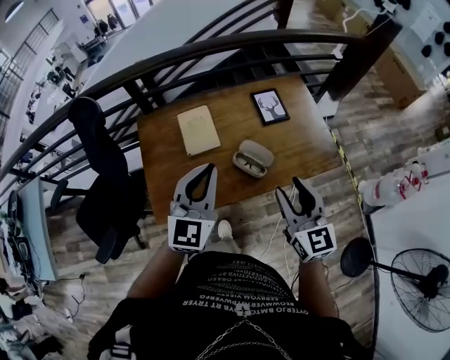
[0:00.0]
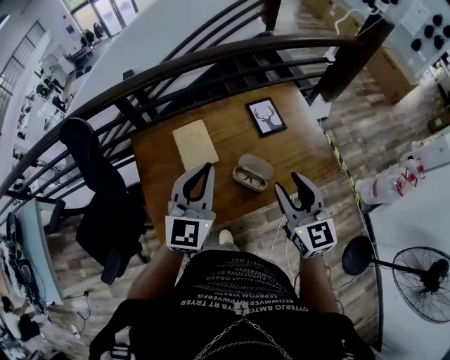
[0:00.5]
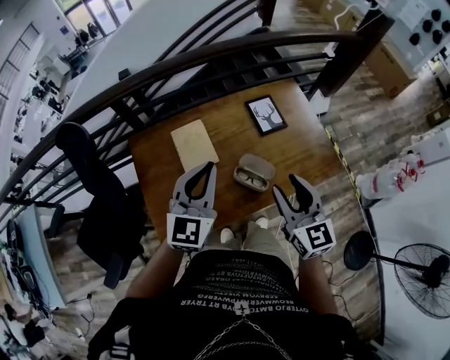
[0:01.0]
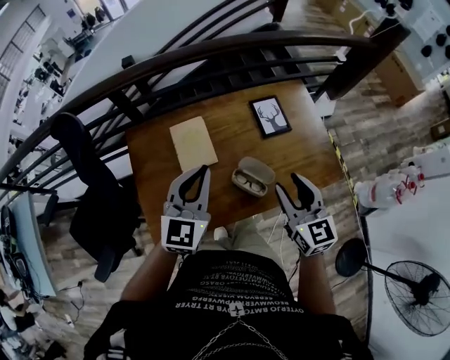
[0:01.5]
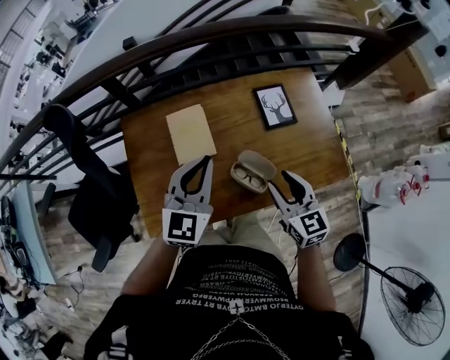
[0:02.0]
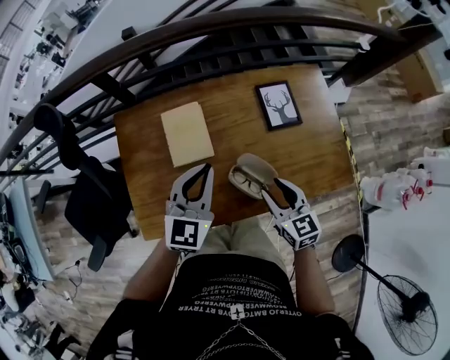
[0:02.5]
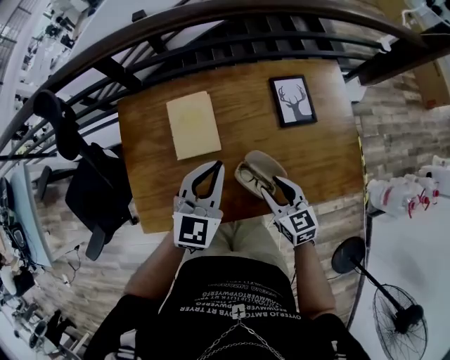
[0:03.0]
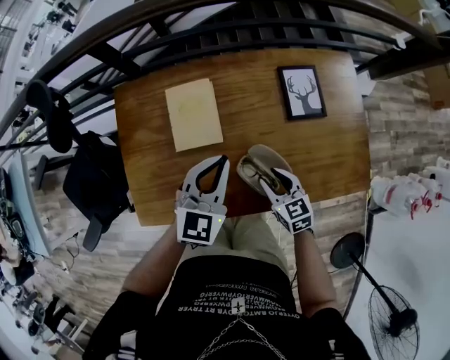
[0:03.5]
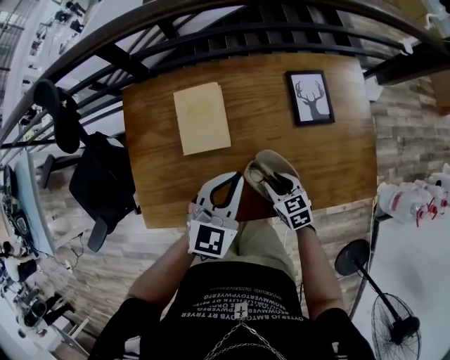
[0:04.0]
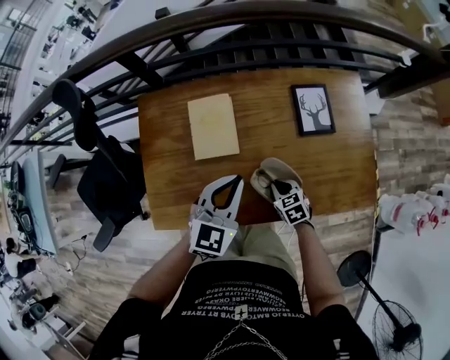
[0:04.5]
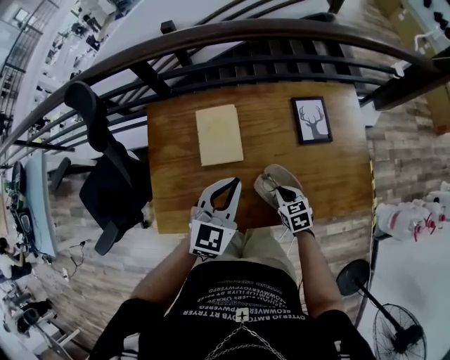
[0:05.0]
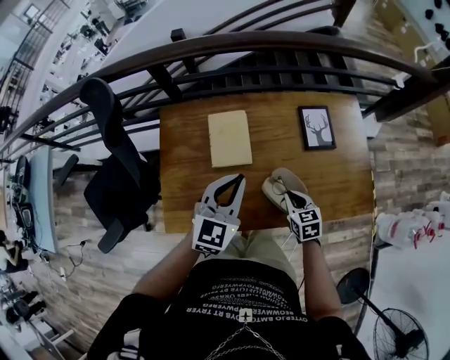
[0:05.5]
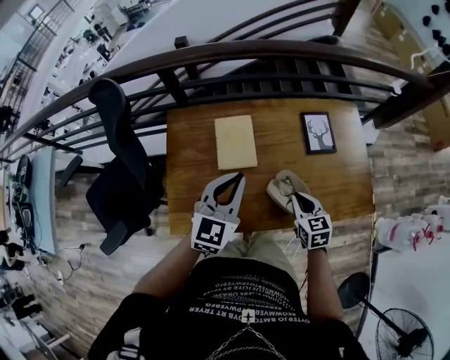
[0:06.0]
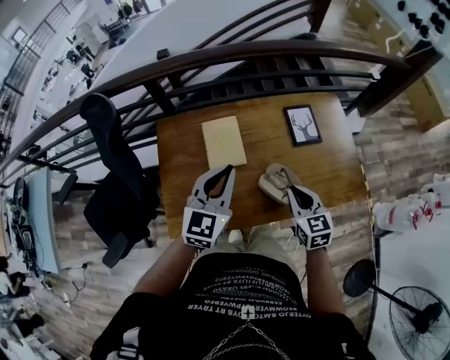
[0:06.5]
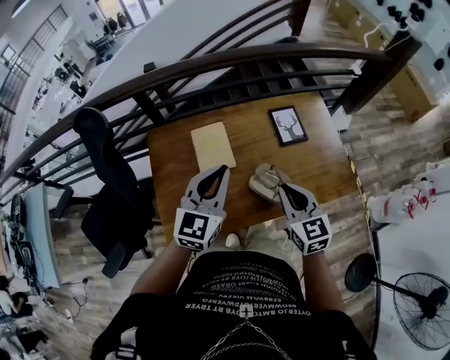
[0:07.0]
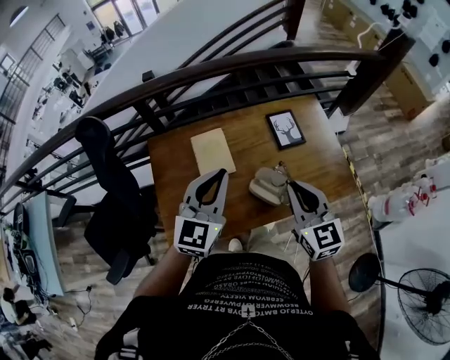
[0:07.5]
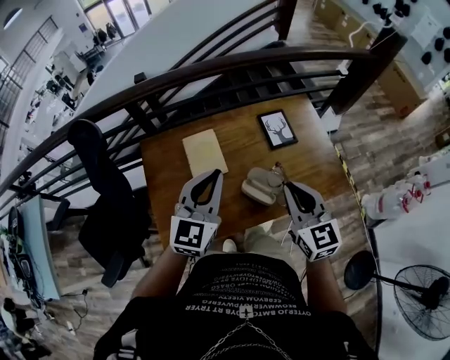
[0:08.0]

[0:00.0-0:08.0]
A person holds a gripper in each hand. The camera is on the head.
0:00.0 to 0:02.0: Both grippers move forward and downward, some 20 cm.
0:02.0 to 0:04.0: The left gripper is displaced downward by about 15 cm; the right gripper heads downward, covering approximately 25 cm, and changes its angle by approximately 30 degrees.
0:04.0 to 0:06.0: The right gripper travels upward by roughly 15 cm, and closes its fingers. Meanwhile the left gripper goes some 15 cm upward and to the left.
0:06.0 to 0:08.0: The right gripper is displaced upward by some 20 cm, and changes its angle by roughly 30 degrees. Meanwhile the left gripper is displaced upward by some 10 cm.

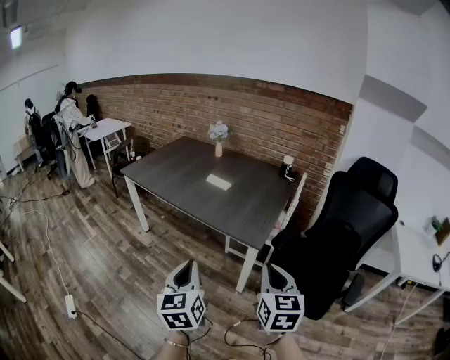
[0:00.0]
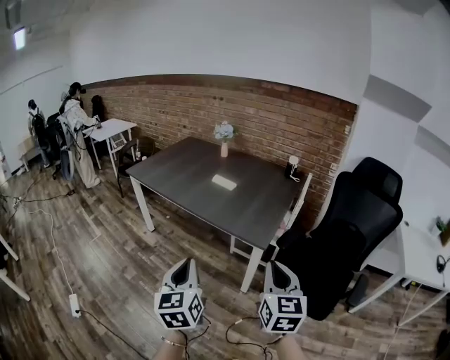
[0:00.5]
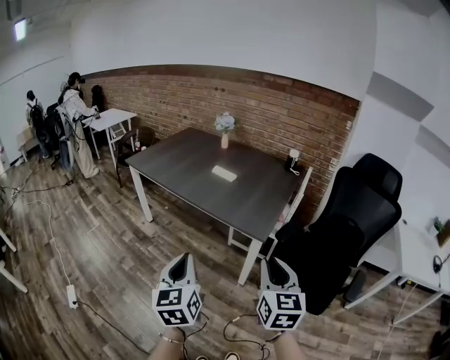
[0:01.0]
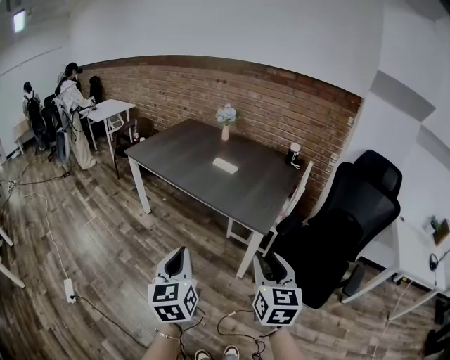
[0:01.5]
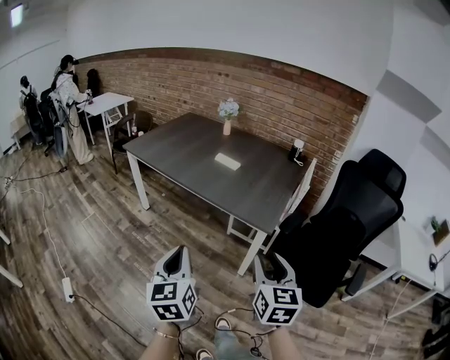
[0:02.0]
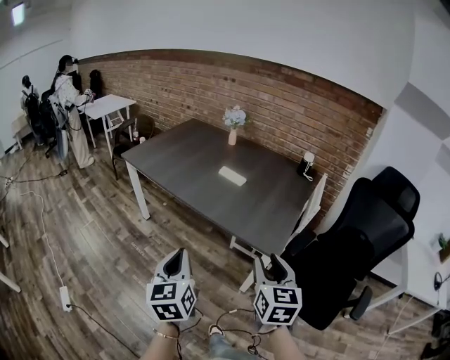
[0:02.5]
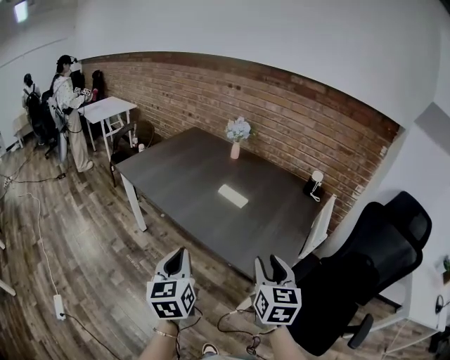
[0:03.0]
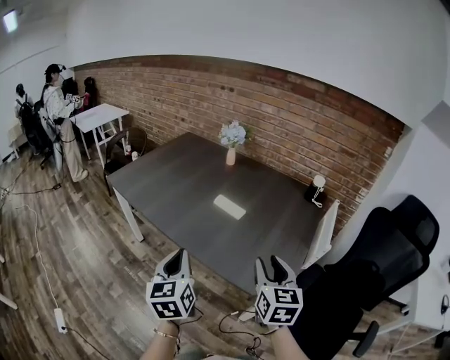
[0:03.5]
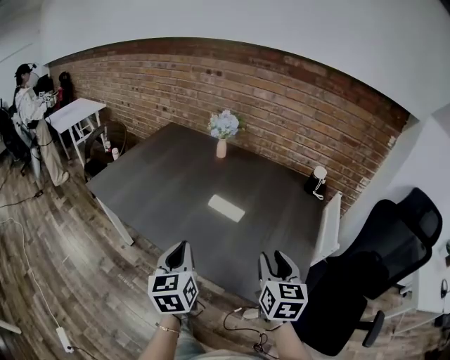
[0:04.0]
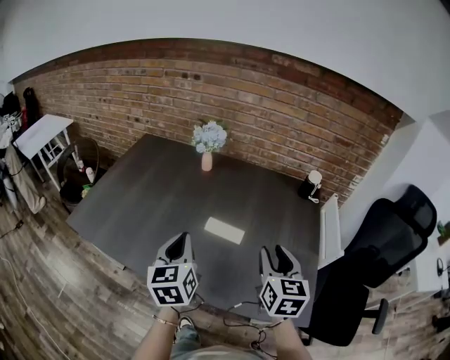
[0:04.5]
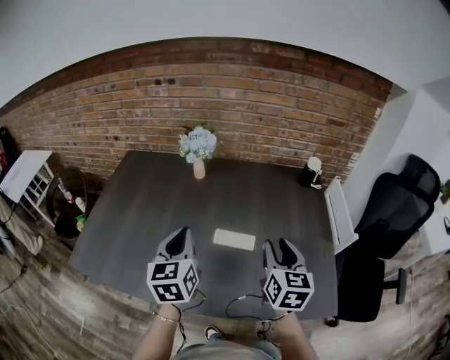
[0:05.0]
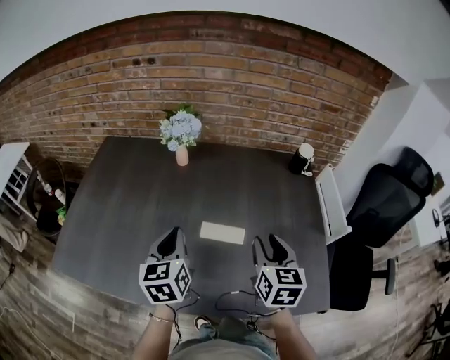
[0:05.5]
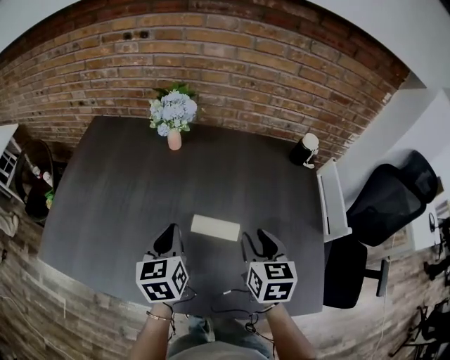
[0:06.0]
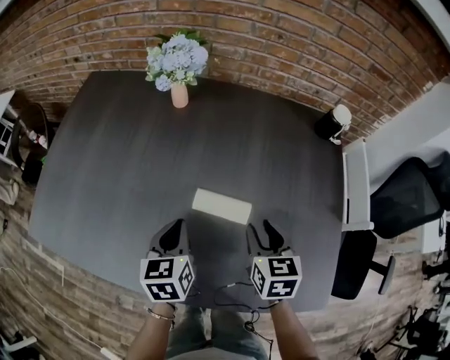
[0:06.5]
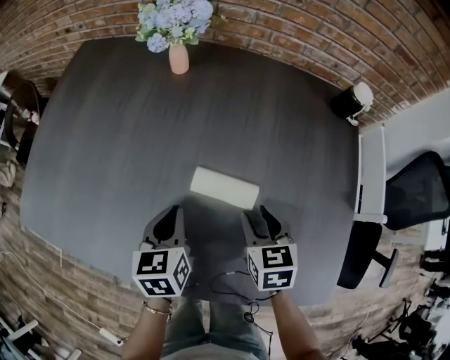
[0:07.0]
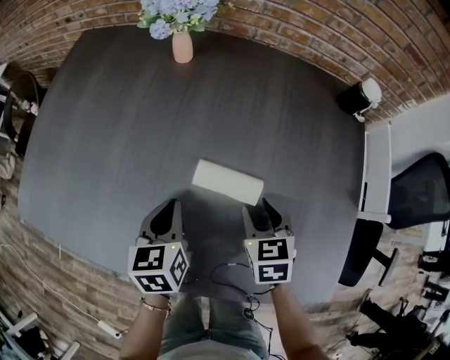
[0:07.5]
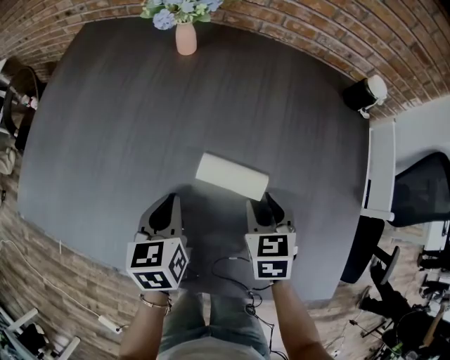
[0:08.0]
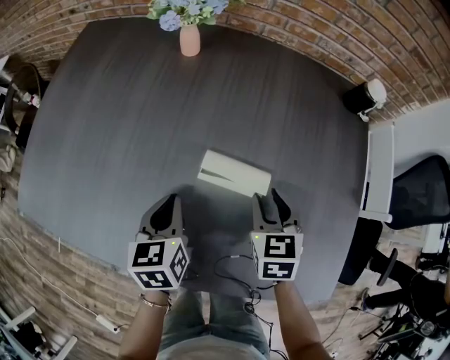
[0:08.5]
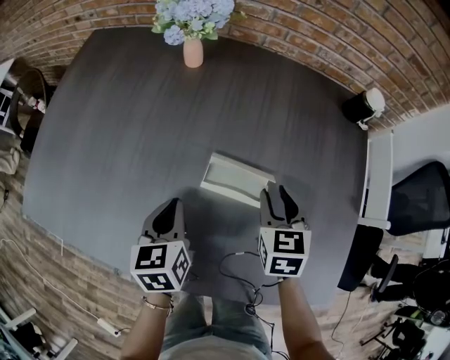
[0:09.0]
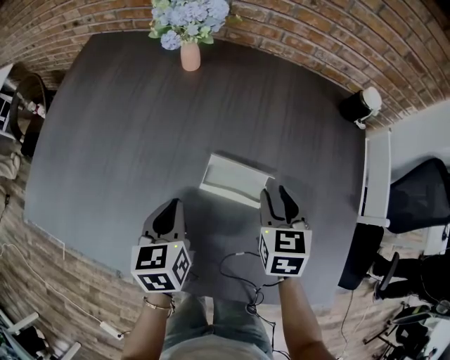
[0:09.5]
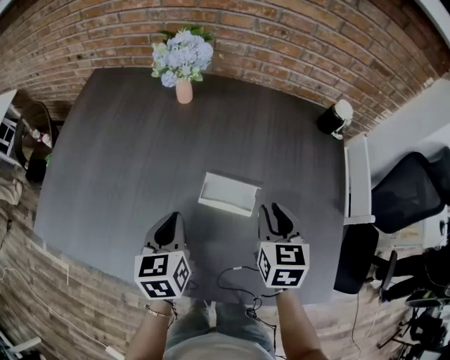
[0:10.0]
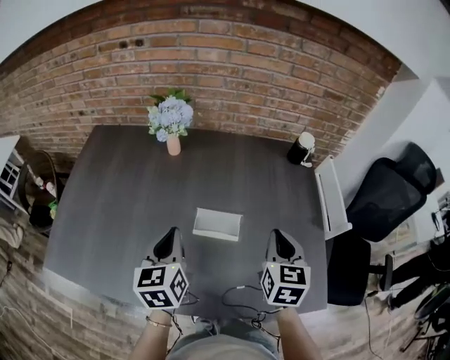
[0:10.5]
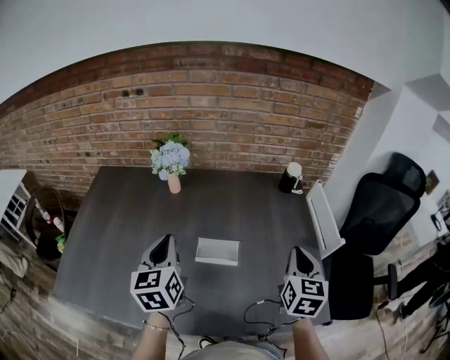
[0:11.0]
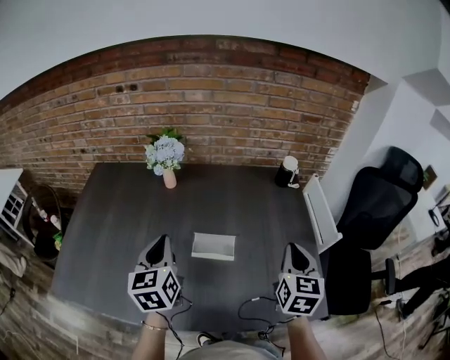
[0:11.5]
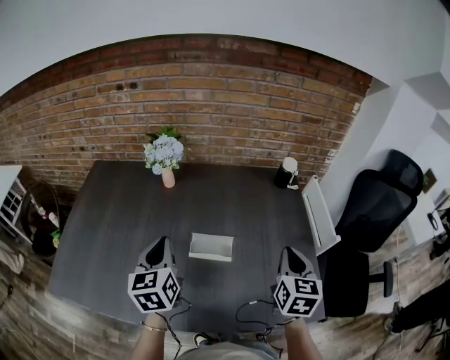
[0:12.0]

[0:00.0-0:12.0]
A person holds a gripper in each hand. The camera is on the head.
0:00.0 to 0:02.0: Both grippers move to the left, approximately 5 cm. The right gripper opens its fingers.
0:02.0 to 0:04.0: The two grippers travel together, forward, roughly 50 cm.
0:04.0 to 0:06.0: The left gripper travels forward by some 30 cm, and swivels approximately 20 degrees, while the right gripper heads forward and to the left, covering approximately 25 cm, and swivels some 20 degrees.
0:06.0 to 0:08.0: Both grippers move downward, some 15 cm. The right gripper swivels some 20 degrees.
0:08.0 to 0:10.0: The right gripper moves upward, some 10 cm. The left gripper shifts approximately 10 cm upward.
0:10.0 to 0:12.0: The right gripper goes approximately 20 cm upward, to the right and backward, changes its angle by about 20 degrees, and closes its fingers. Meanwhile the left gripper heads upward, covering roughly 15 cm.

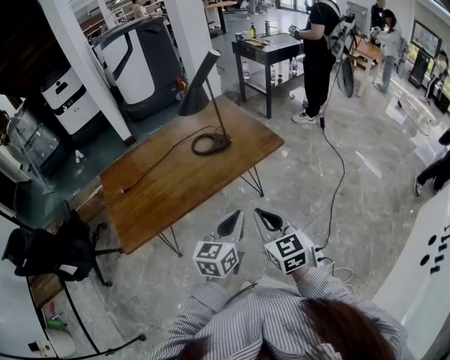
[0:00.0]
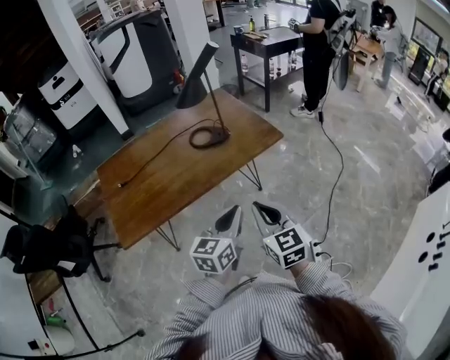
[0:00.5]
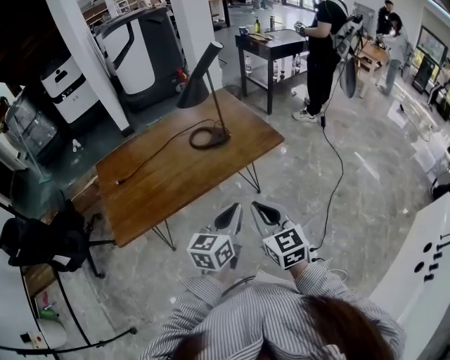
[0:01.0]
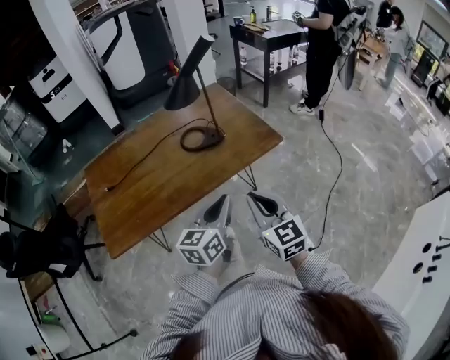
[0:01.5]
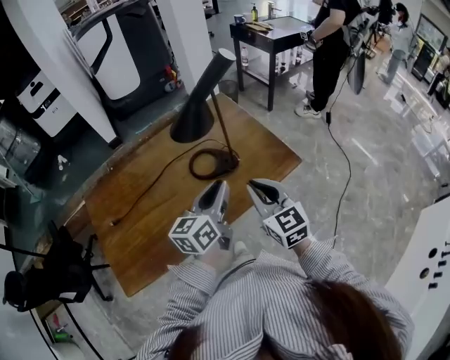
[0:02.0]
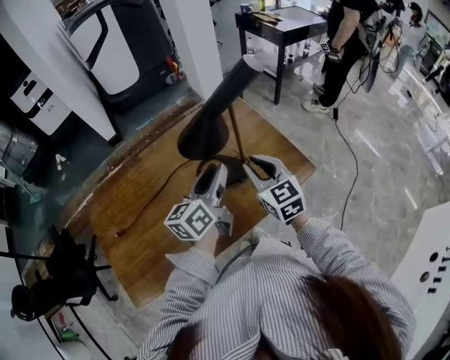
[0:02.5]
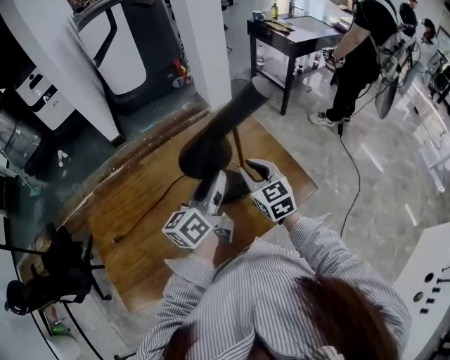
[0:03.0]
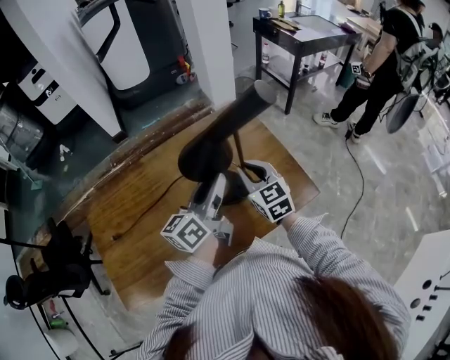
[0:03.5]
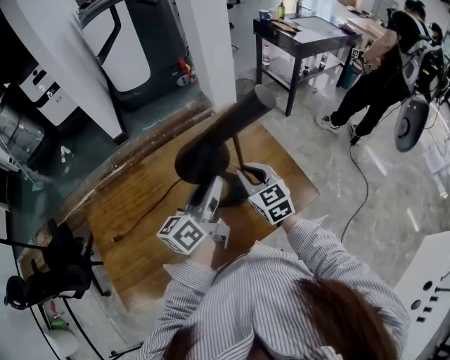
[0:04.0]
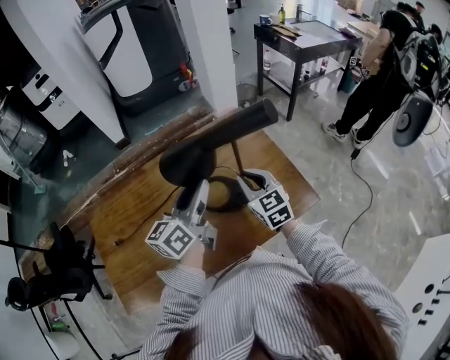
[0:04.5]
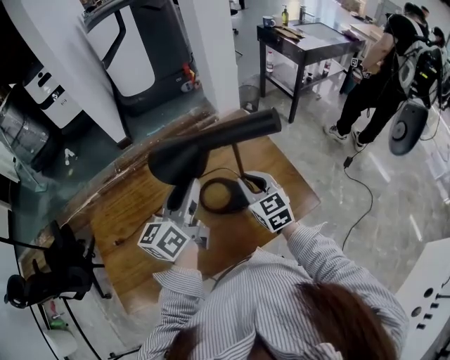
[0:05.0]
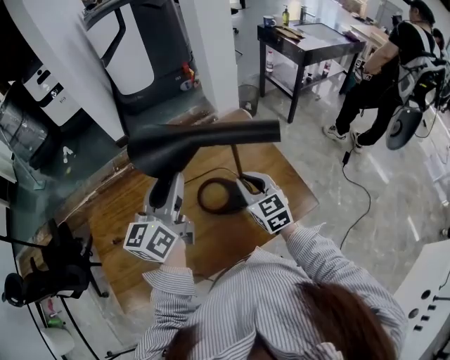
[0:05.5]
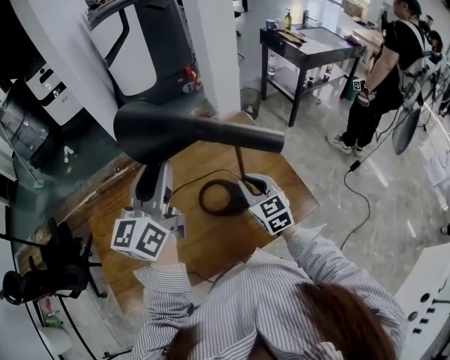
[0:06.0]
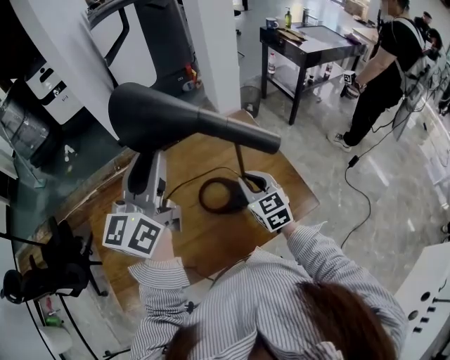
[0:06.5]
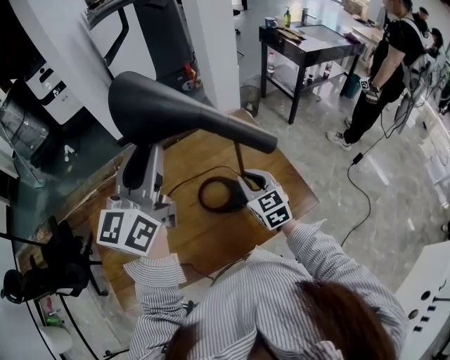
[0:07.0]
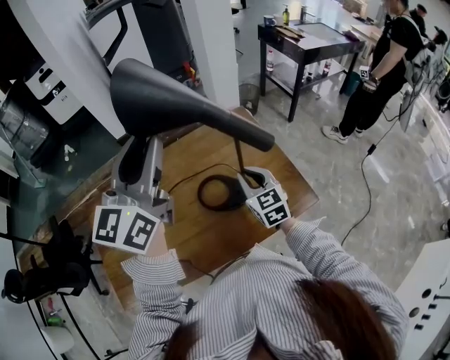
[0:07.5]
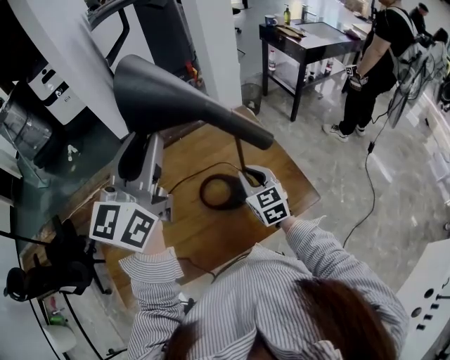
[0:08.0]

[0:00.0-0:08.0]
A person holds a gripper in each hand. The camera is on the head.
0:00.0 to 0:02.0: Both grippers travel together forward, approximately 30 cm.
0:02.0 to 0:04.0: The two grippers go roughly 20 cm forward.
0:04.0 to 0:06.0: The left gripper heads upward and to the left, covering about 15 cm, and changes its angle by some 30 degrees.
0:06.0 to 0:08.0: The left gripper goes some 10 cm upward.
